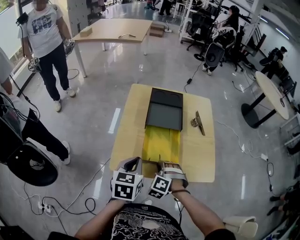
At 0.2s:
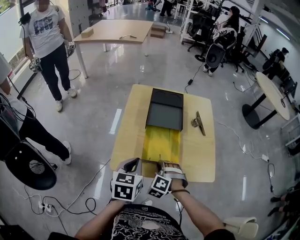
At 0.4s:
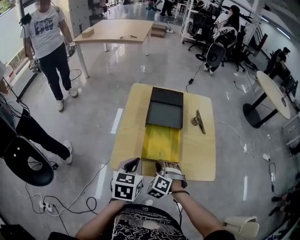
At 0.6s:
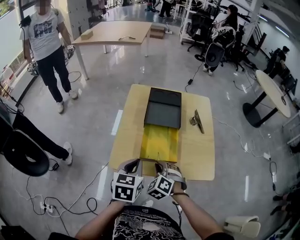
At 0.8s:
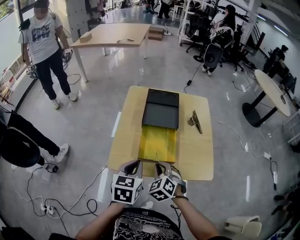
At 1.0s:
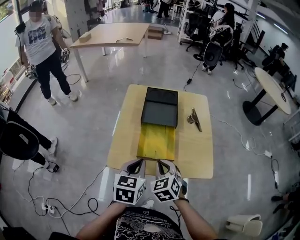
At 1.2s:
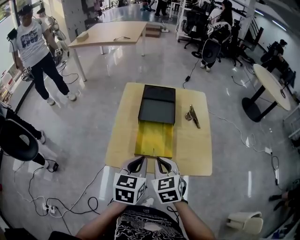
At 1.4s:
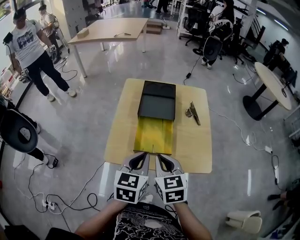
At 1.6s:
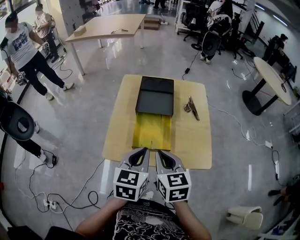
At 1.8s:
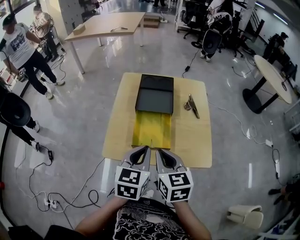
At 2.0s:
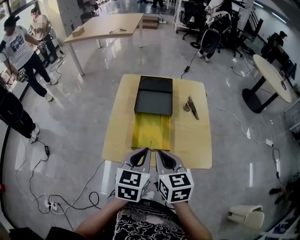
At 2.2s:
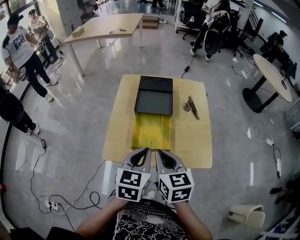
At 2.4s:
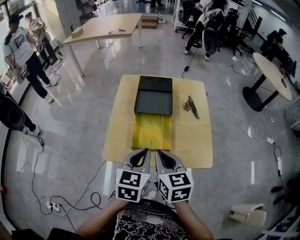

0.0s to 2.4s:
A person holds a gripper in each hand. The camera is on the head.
0.0s to 1.2s: The left gripper travels to the right by roughly 15 cm. The right gripper moves upward, to the right and backward, some 20 cm, and twists some 50 degrees clockwise, seen from behind.
1.2s to 2.4s: The right gripper ends up roughly 5 cm from where it was, and turns by about 20 degrees. The left gripper travels to the right by about 5 cm.

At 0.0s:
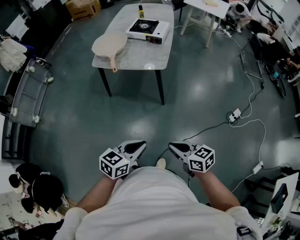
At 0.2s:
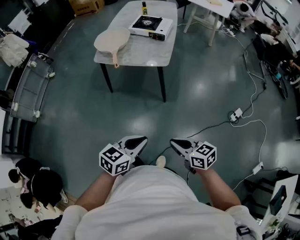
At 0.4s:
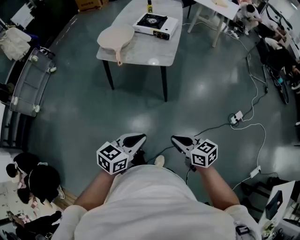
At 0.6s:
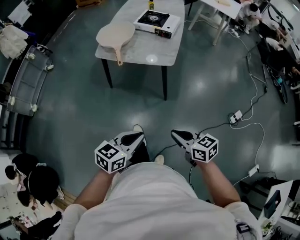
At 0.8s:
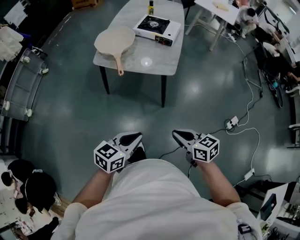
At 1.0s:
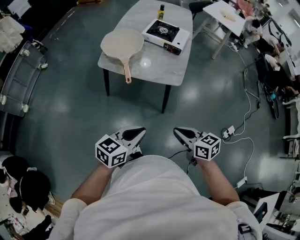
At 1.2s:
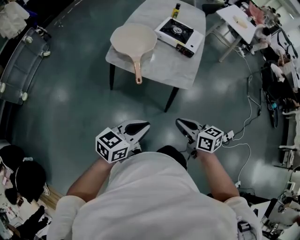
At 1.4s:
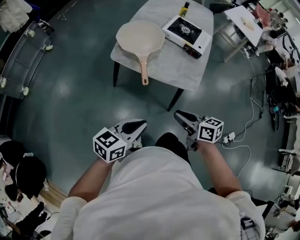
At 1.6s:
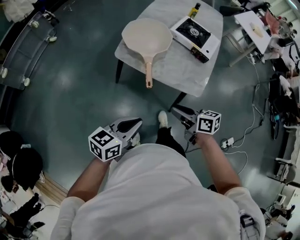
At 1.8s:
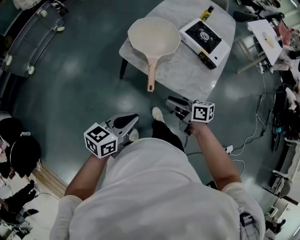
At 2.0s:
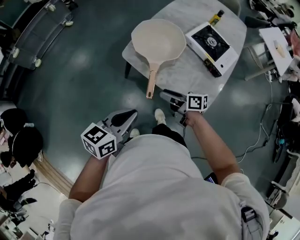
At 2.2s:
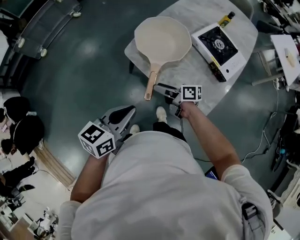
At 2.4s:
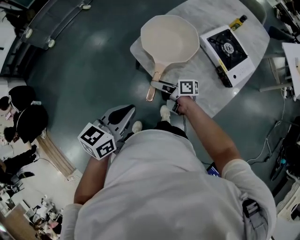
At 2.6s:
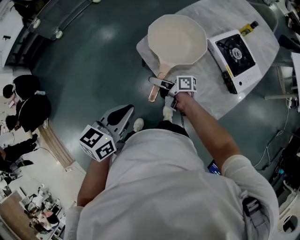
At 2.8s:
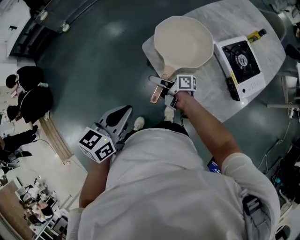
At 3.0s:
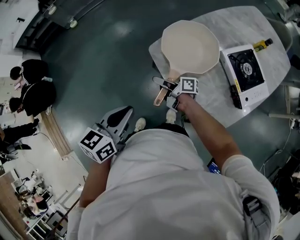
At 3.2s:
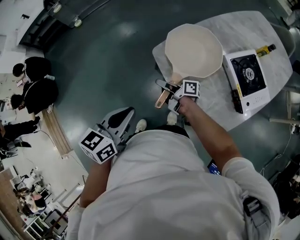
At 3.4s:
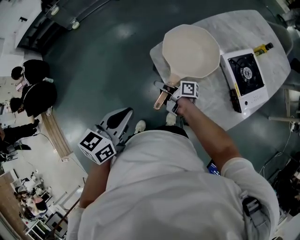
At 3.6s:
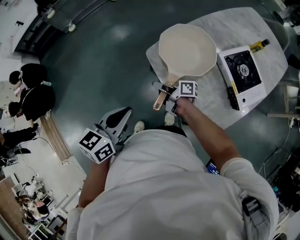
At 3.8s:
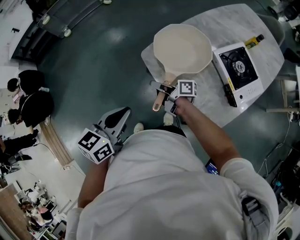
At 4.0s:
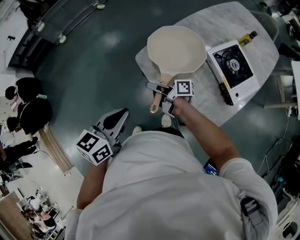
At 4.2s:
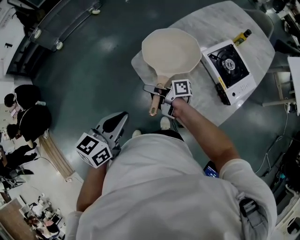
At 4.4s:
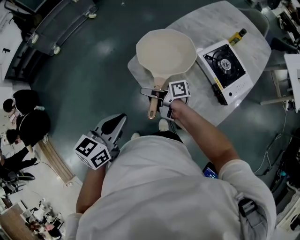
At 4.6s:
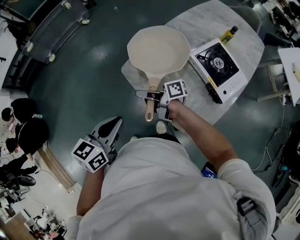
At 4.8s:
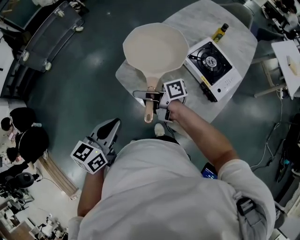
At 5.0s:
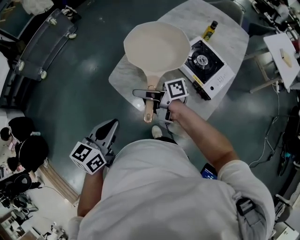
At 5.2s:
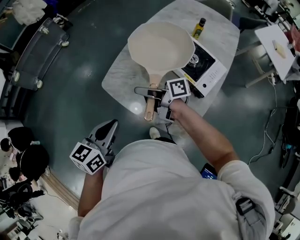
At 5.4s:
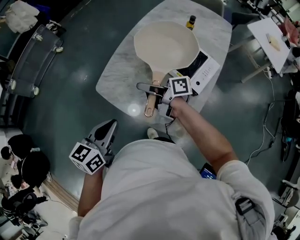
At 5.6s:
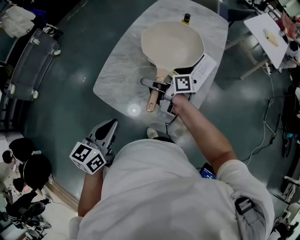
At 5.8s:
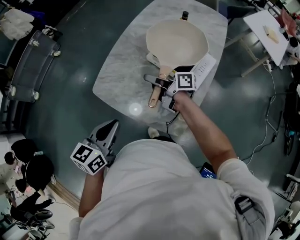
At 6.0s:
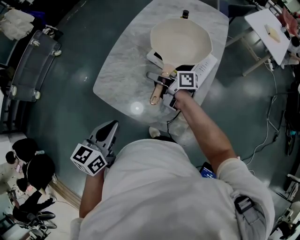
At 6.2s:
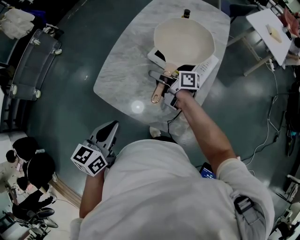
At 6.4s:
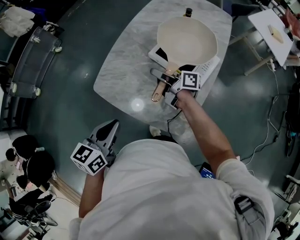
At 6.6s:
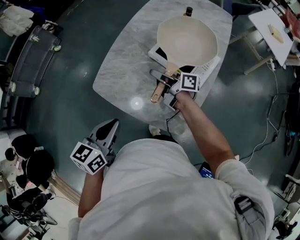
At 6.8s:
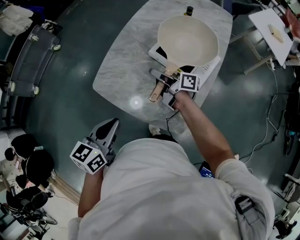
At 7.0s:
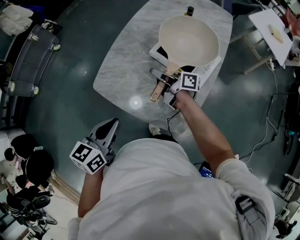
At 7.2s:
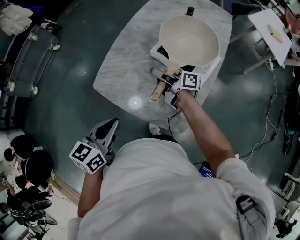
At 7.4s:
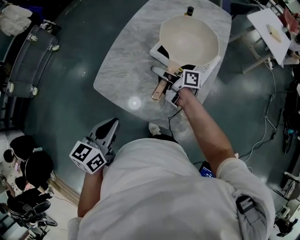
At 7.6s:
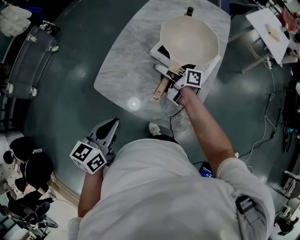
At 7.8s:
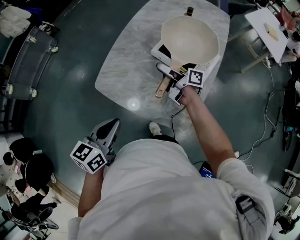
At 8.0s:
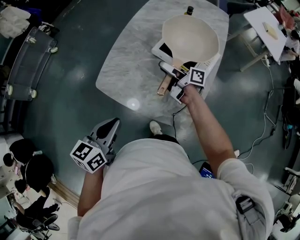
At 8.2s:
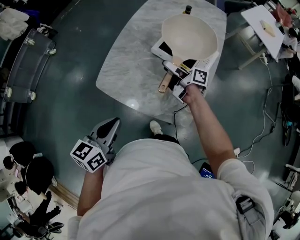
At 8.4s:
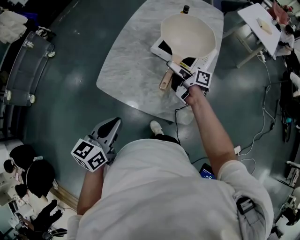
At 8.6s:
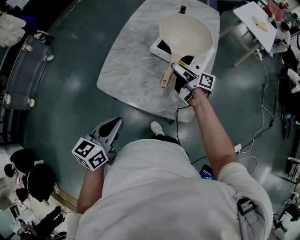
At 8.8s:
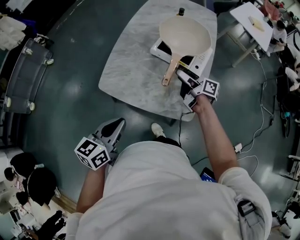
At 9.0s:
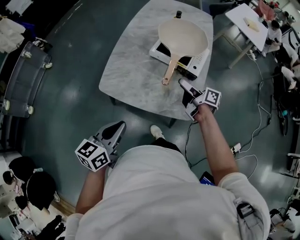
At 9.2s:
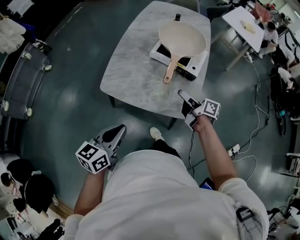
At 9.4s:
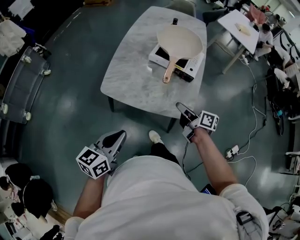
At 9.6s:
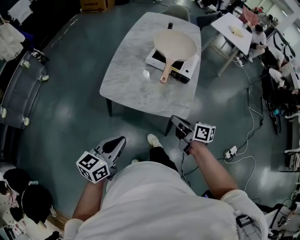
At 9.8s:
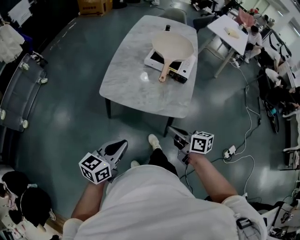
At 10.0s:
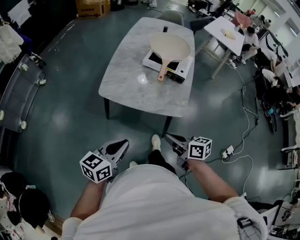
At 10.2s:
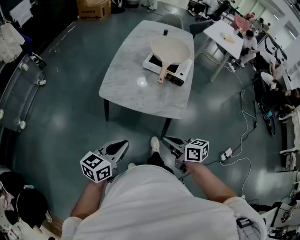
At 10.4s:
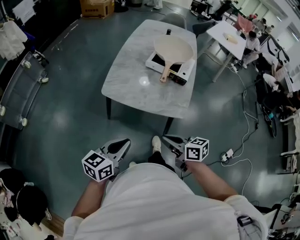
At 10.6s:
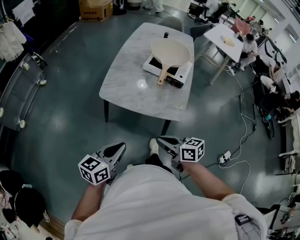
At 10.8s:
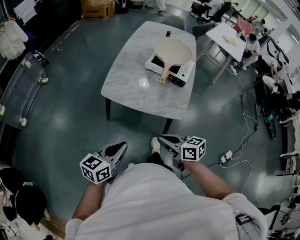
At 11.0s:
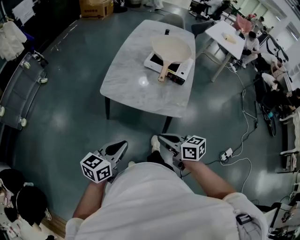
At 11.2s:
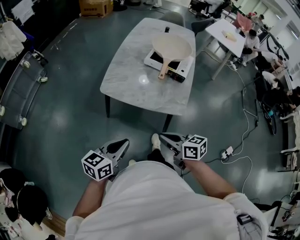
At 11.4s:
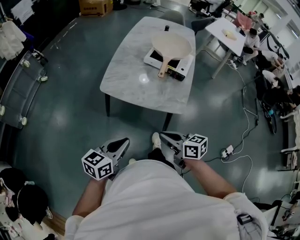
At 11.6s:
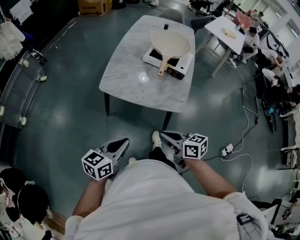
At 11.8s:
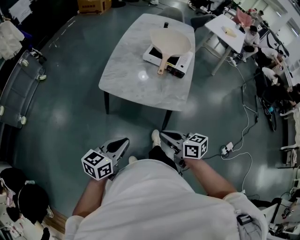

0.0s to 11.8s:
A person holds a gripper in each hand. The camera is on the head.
0.0s to 1.4s: The left gripper moves forward and to the left, approximately 30 cm. Meanwhile the right gripper moves forward, roughly 35 cm.
1.4s to 3.0s: The left gripper moves some 15 cm, and rotates about 50 degrees. Meanwhile the right gripper moves some 35 cm, swivels approximately 60 degrees, and opens, then closes again.
3.0s to 4.4s: The right gripper moves upward, roughly 5 cm.
4.4s to 6.0s: The left gripper heads to the right, covering roughly 10 cm. Meanwhile the right gripper shifts about 25 cm to the right, and turns by some 30 degrees.
6.0s to 7.4s: There are only small adjustments of the grippers.
7.4s to 8.8s: The right gripper goes roughly 10 cm backward and to the right, turns by roughly 20 degrees, and opens. Meanwhile the left gripper shifts by approximately 5 cm.
8.8s to 10.4s: The left gripper goes roughly 15 cm backward, while the right gripper heads backward, covering roughly 35 cm, swivels about 40 degrees, and closes.
10.4s to 11.8s: The grippers make only small movements.

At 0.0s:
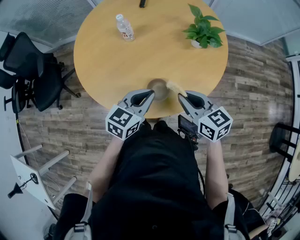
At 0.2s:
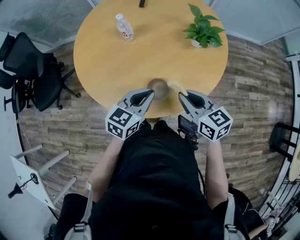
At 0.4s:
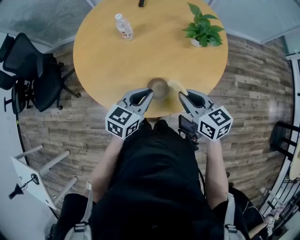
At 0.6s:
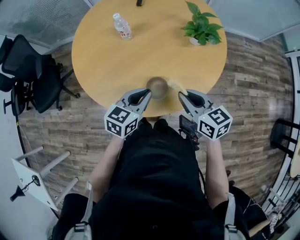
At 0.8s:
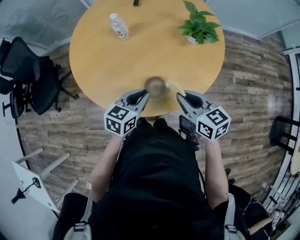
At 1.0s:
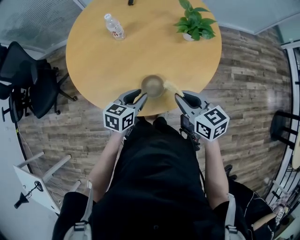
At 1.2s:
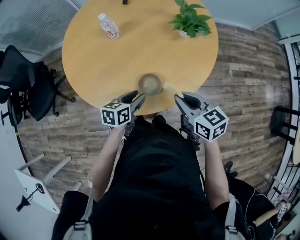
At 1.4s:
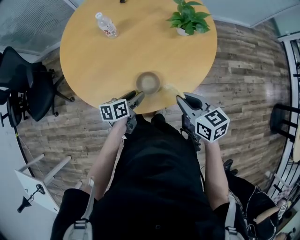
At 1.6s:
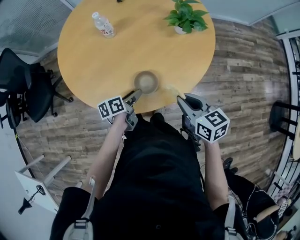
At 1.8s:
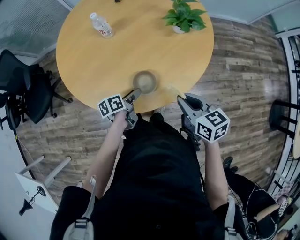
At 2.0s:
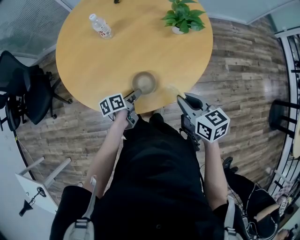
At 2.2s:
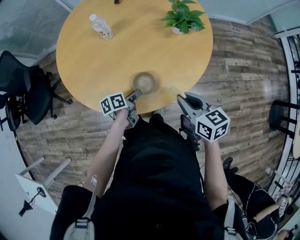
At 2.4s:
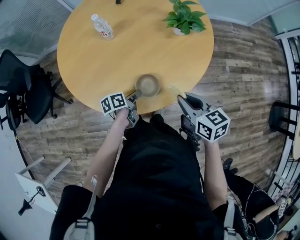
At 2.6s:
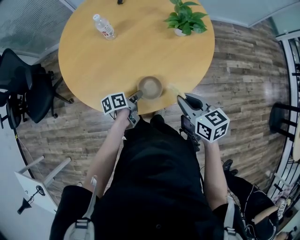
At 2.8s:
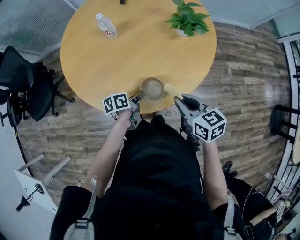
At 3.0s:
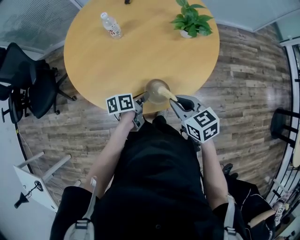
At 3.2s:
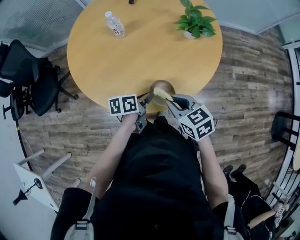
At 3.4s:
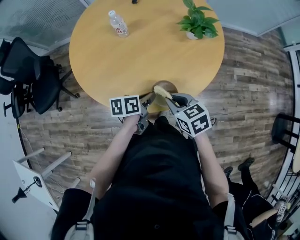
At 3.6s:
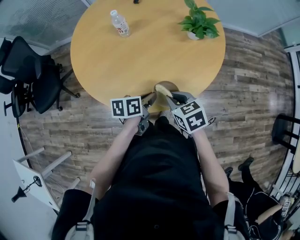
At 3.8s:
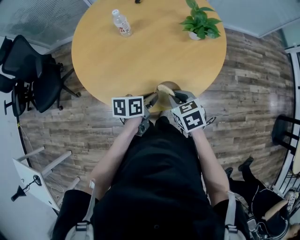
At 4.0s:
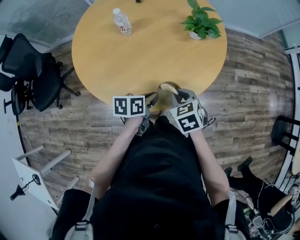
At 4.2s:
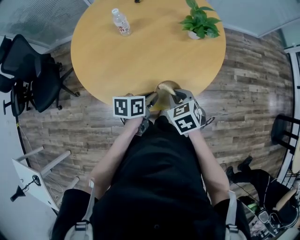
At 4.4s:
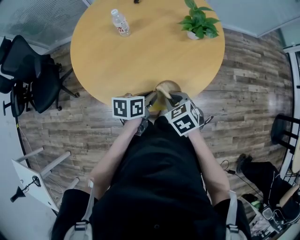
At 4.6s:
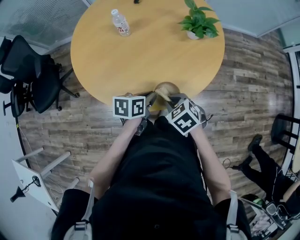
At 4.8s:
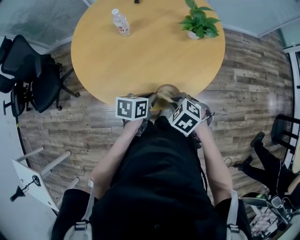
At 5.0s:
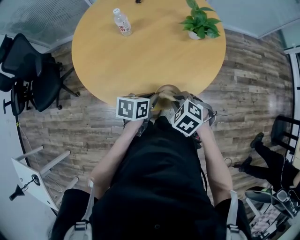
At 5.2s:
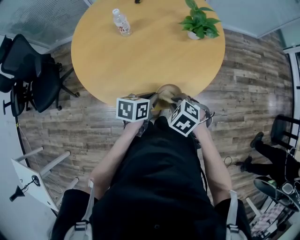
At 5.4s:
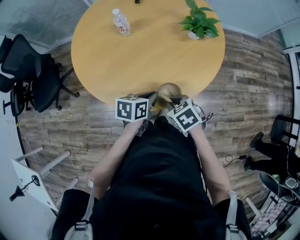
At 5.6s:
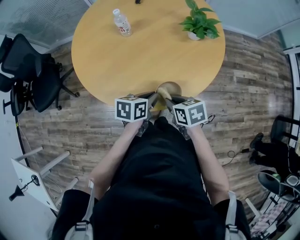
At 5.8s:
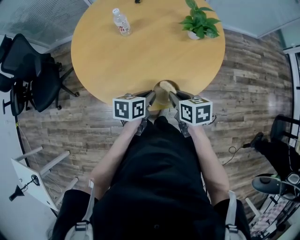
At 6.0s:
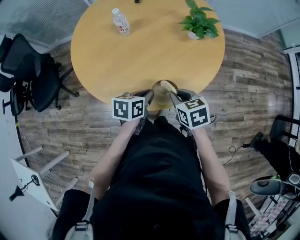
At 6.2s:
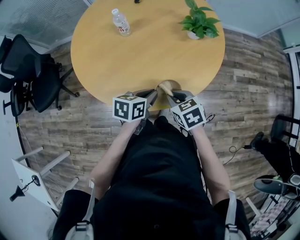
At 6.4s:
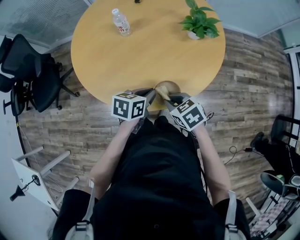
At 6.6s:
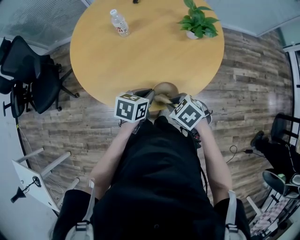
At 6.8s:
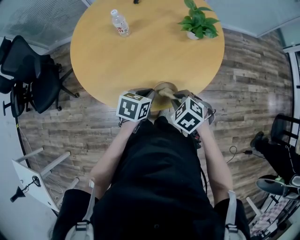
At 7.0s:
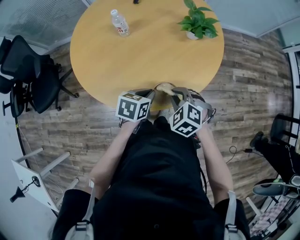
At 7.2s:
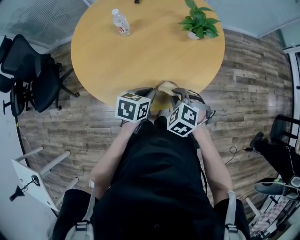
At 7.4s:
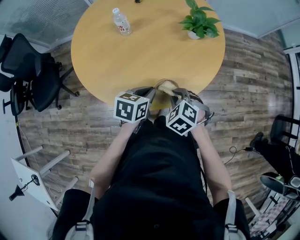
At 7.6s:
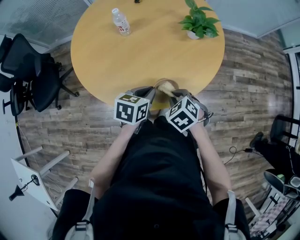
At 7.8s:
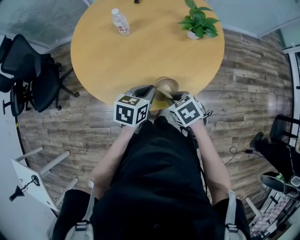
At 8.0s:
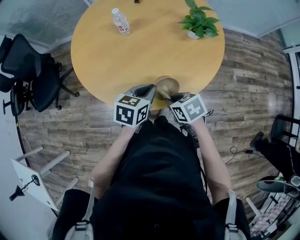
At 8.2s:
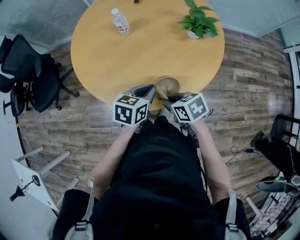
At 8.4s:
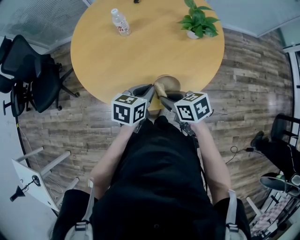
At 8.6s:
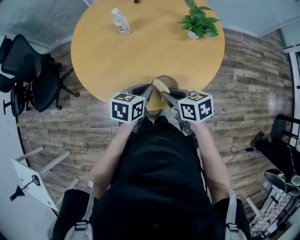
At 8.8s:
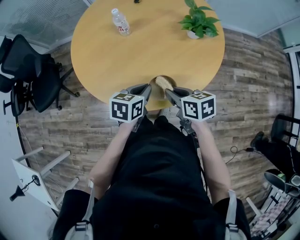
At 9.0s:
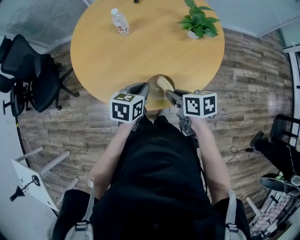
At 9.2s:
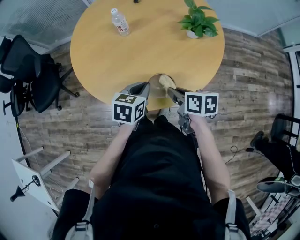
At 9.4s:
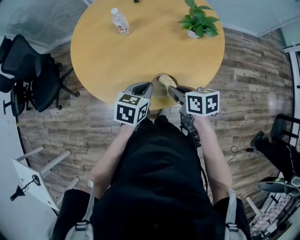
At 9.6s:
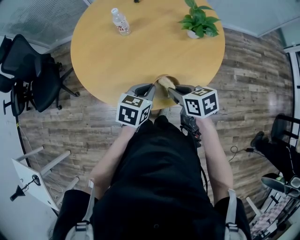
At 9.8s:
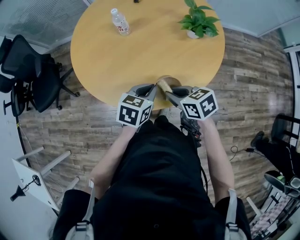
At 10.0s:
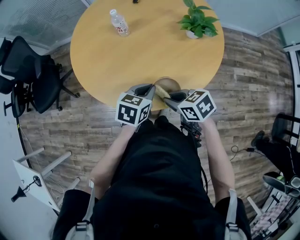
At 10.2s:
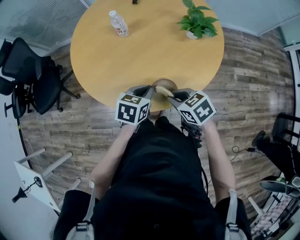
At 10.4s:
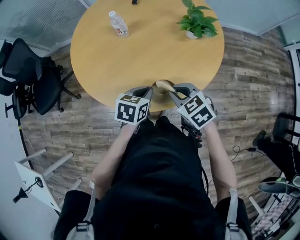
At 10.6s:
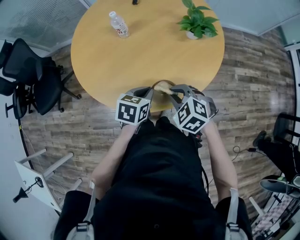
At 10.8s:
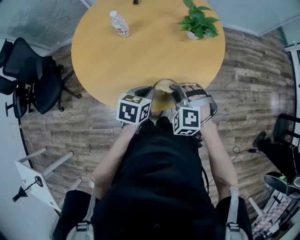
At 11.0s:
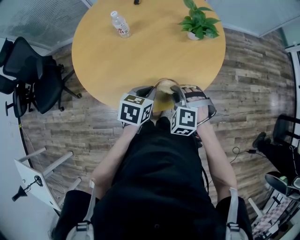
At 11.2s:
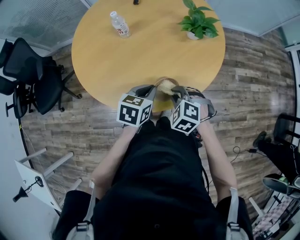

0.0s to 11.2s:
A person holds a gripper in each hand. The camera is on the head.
0.0s to 1.6s: The left gripper travels downward by approximately 15 cm, rolls counterclockwise, seen from behind, by some 50 degrees, and opens its fingers; the right gripper ends up roughly 5 cm from where it was.
1.6s to 3.2s: The left gripper moves roughly 5 cm, and closes up, while the right gripper moves to the left, roughly 5 cm.
3.2s to 4.8s: The right gripper is displaced downward by some 5 cm, and swivels about 40 degrees; the left gripper swivels about 20 degrees.
4.8s to 6.4s: The right gripper rotates approximately 20 degrees.
8.0s to 9.6s: The right gripper shifts by about 5 cm.
9.6s to 11.2s: The right gripper rolls counterclockwise, seen from behind, by about 60 degrees.
